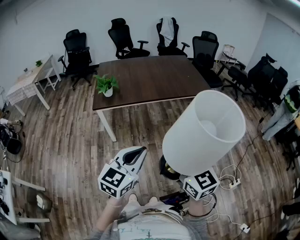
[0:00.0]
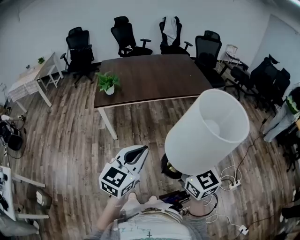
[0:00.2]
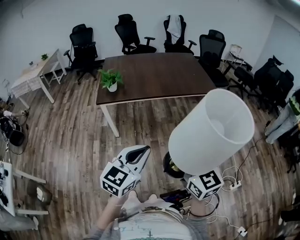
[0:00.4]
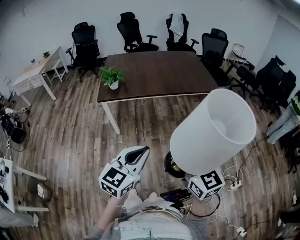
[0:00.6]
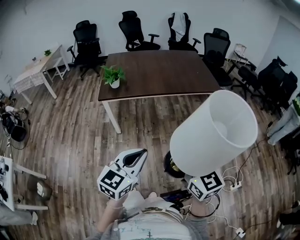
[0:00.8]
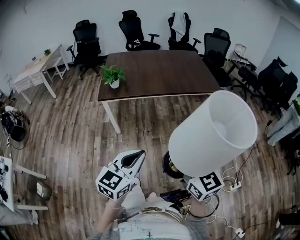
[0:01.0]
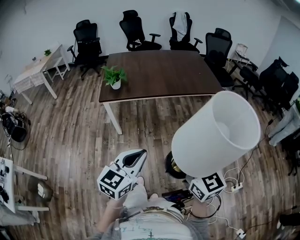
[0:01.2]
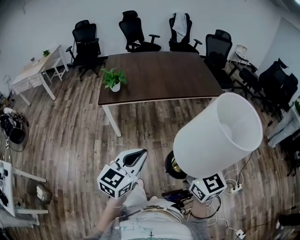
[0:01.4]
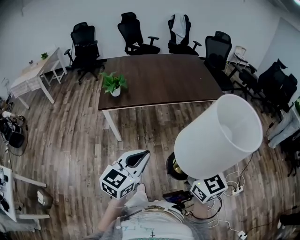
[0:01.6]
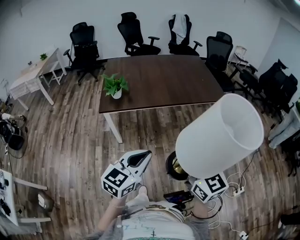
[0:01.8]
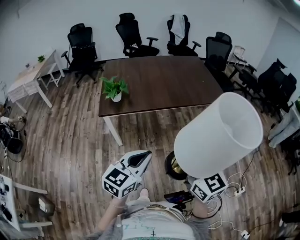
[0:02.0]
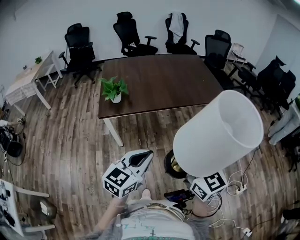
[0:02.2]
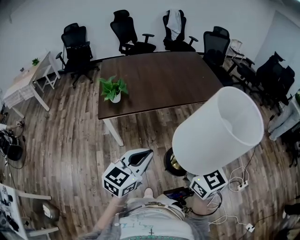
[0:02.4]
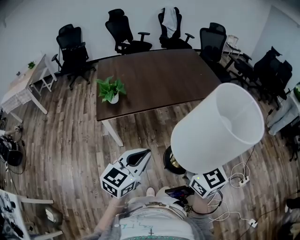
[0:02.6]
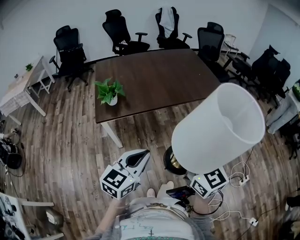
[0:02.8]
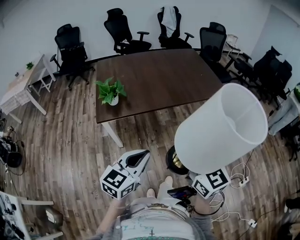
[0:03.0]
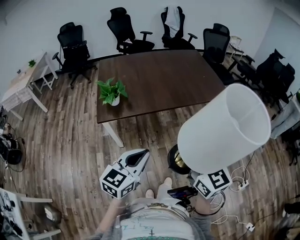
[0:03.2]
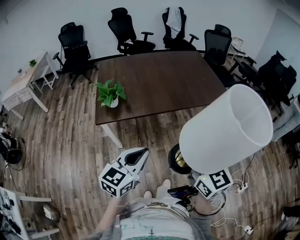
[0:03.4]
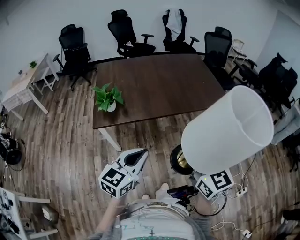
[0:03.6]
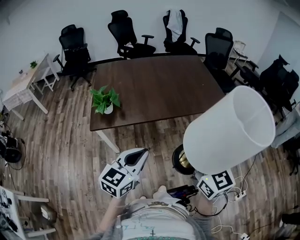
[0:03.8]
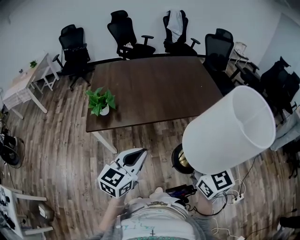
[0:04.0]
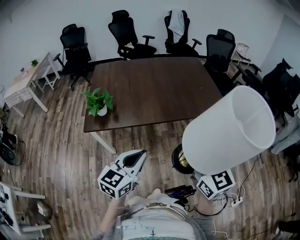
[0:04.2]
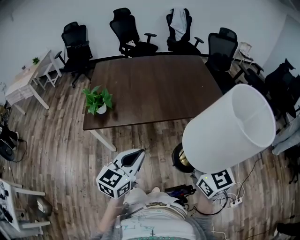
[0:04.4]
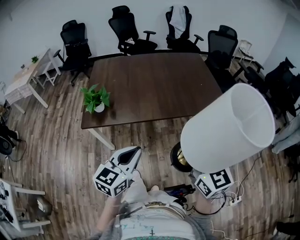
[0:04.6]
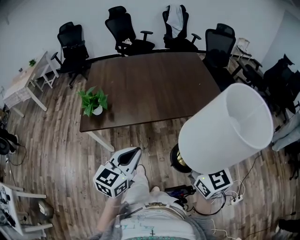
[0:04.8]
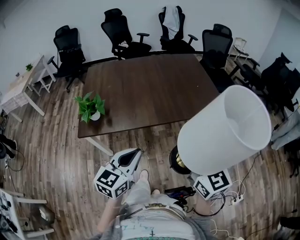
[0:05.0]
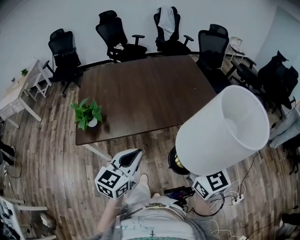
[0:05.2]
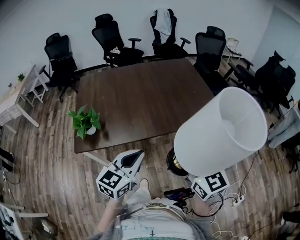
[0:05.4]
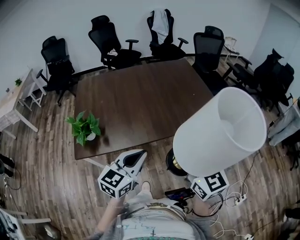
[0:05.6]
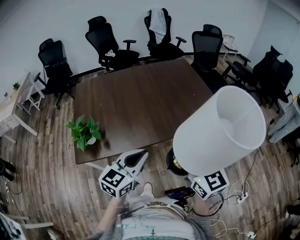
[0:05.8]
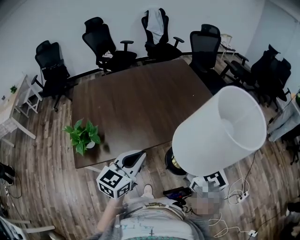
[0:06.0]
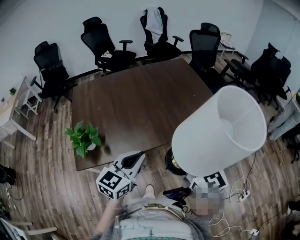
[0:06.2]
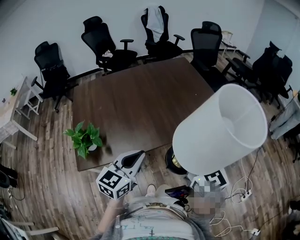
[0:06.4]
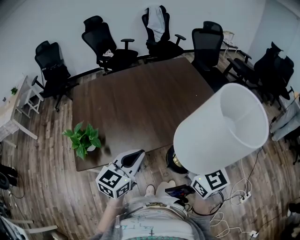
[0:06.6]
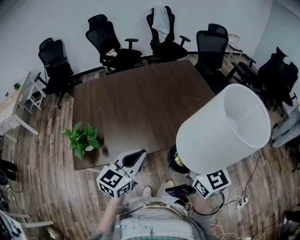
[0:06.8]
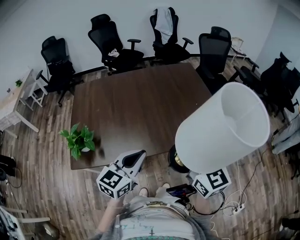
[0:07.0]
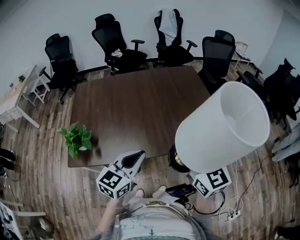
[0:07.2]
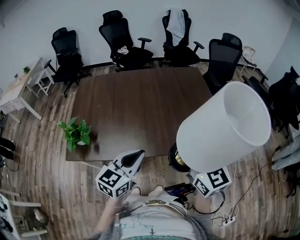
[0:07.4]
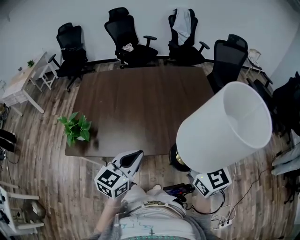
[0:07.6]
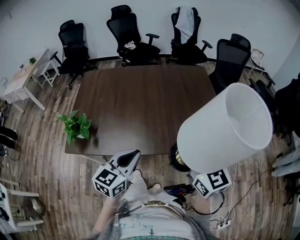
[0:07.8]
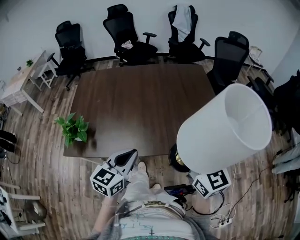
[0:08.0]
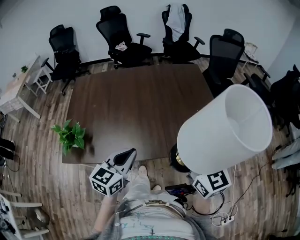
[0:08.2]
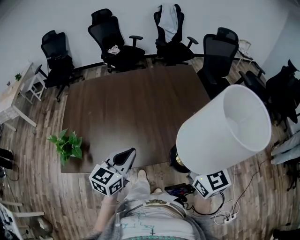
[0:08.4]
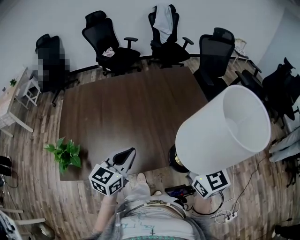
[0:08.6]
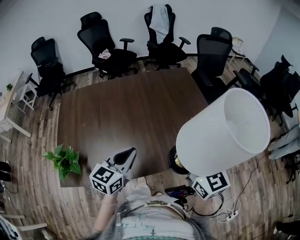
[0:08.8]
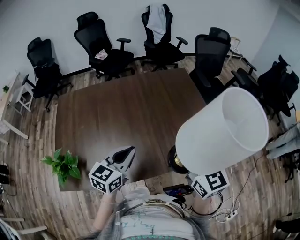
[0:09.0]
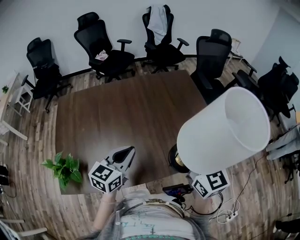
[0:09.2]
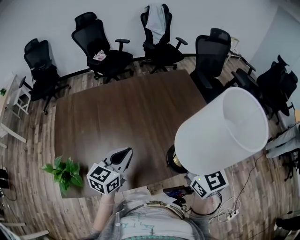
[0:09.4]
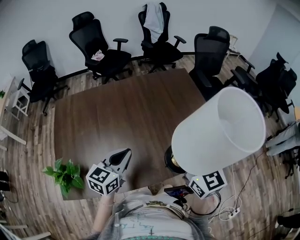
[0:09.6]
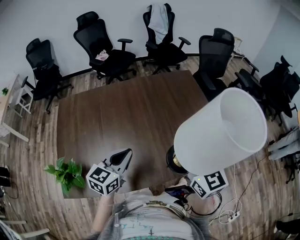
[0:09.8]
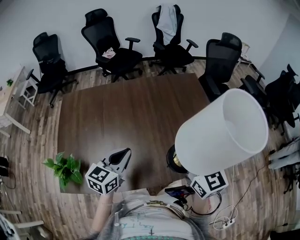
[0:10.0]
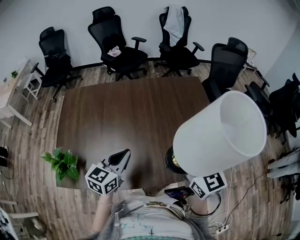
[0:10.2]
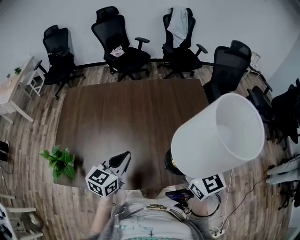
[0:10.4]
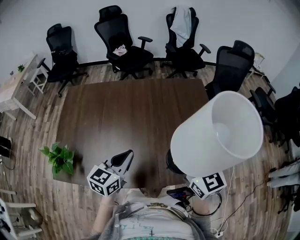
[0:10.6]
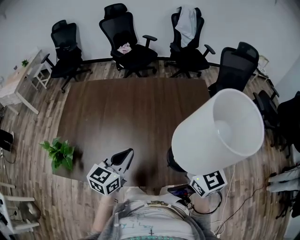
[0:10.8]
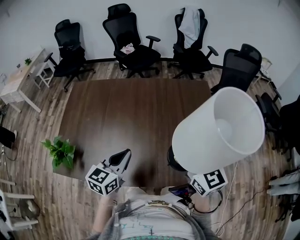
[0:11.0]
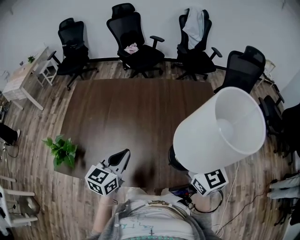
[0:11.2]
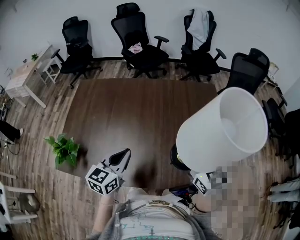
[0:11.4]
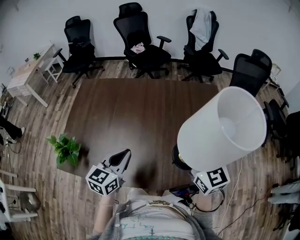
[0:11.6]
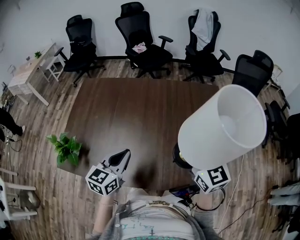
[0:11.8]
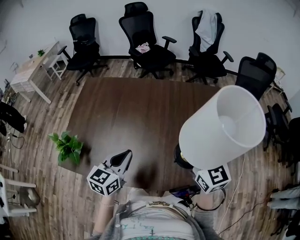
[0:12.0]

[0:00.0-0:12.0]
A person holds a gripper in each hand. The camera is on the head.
0:00.0 to 0:01.6: Both grippers move forward, some 5 cm.
0:01.6 to 0:03.0: Both grippers move forward and to the left, roughly 15 cm.
0:03.0 to 0:04.4: Both grippers travel together forward and to the right, about 20 cm.
0:04.4 to 0:06.0: Both grippers move forward, roughly 15 cm.
0:06.0 to 0:07.6: The two grippers go about 15 cm forward and to the right.
0:07.6 to 0:09.0: The two grippers go about 15 cm forward.
0:09.0 to 0:10.4: The right gripper shifts approximately 10 cm forward.
0:10.4 to 0:12.0: The right gripper shifts roughly 5 cm forward.

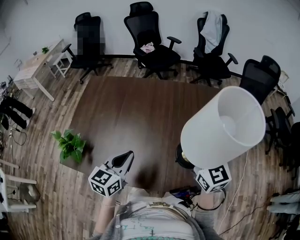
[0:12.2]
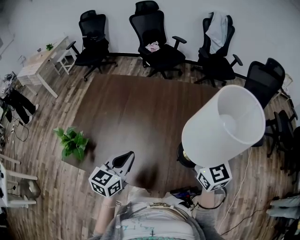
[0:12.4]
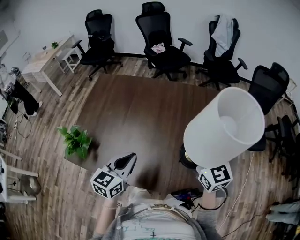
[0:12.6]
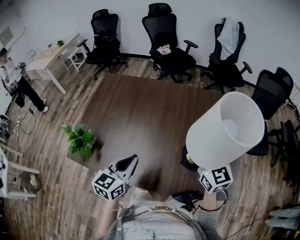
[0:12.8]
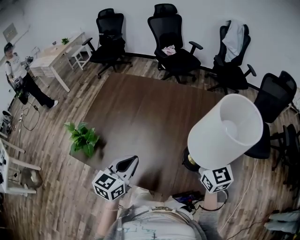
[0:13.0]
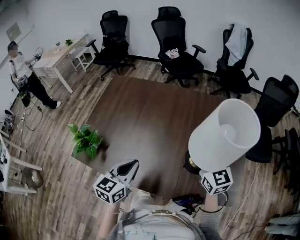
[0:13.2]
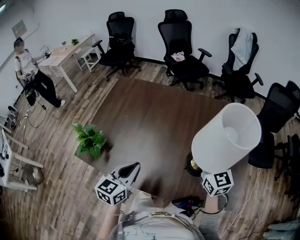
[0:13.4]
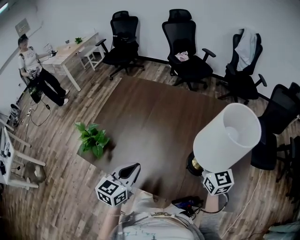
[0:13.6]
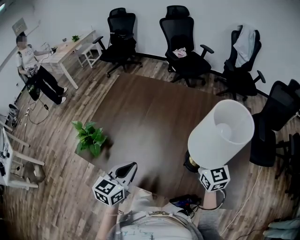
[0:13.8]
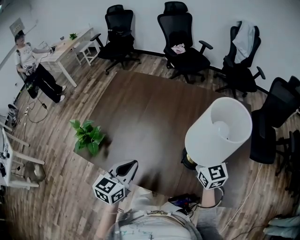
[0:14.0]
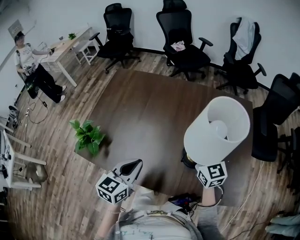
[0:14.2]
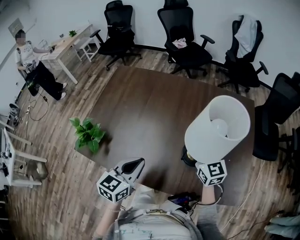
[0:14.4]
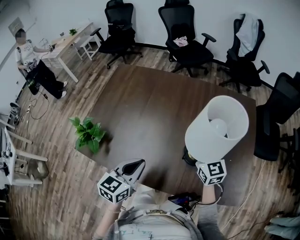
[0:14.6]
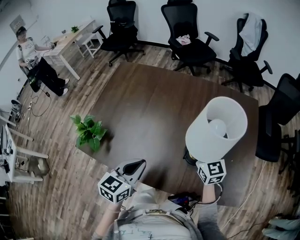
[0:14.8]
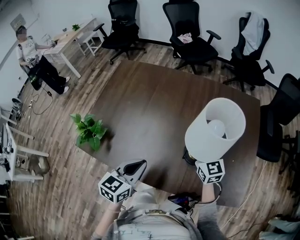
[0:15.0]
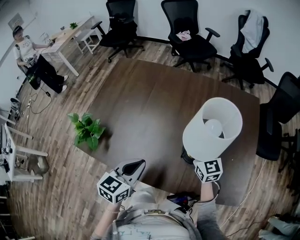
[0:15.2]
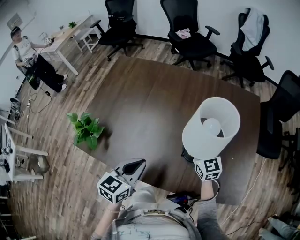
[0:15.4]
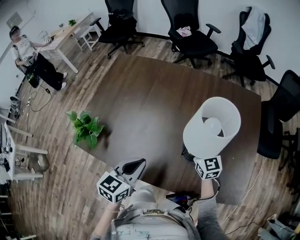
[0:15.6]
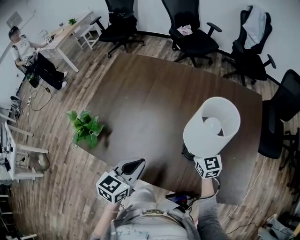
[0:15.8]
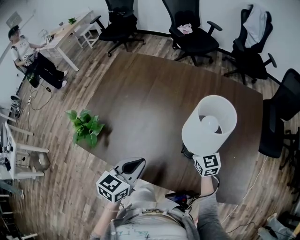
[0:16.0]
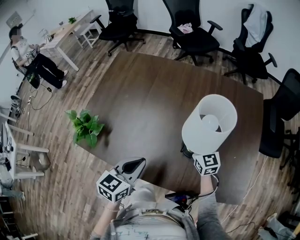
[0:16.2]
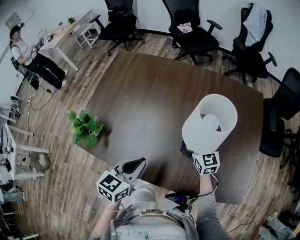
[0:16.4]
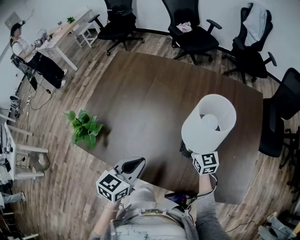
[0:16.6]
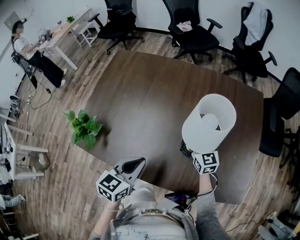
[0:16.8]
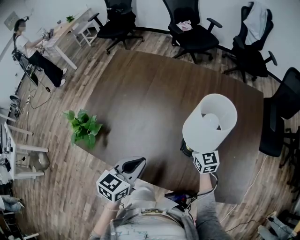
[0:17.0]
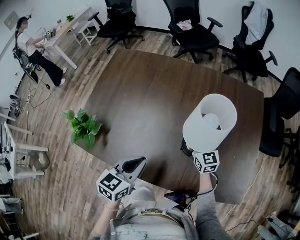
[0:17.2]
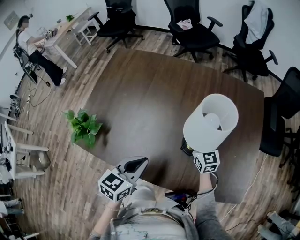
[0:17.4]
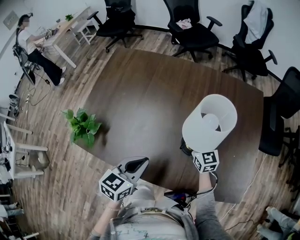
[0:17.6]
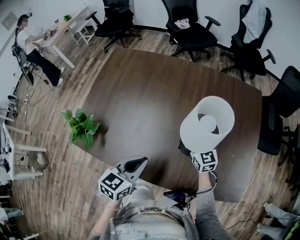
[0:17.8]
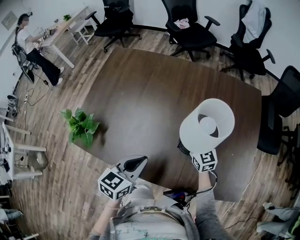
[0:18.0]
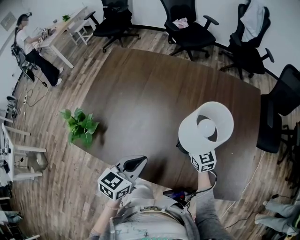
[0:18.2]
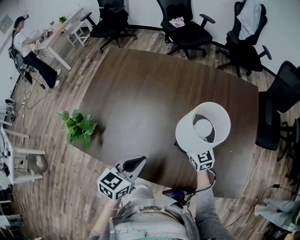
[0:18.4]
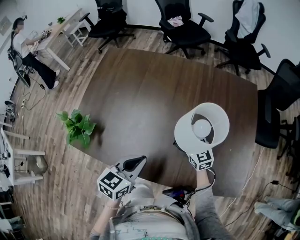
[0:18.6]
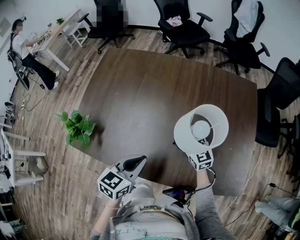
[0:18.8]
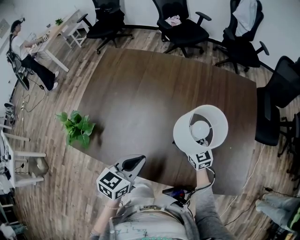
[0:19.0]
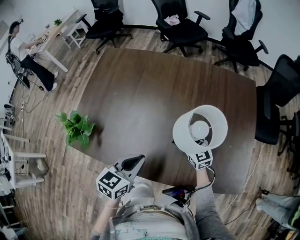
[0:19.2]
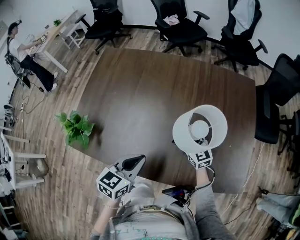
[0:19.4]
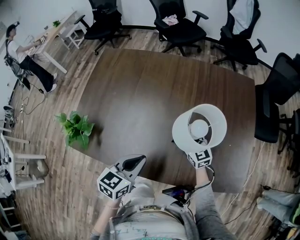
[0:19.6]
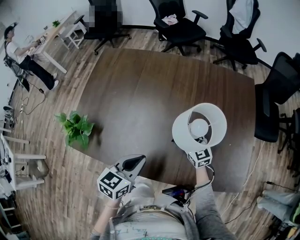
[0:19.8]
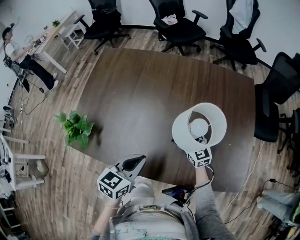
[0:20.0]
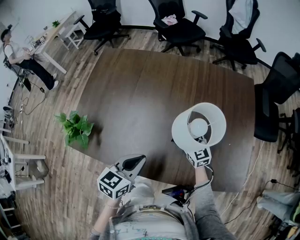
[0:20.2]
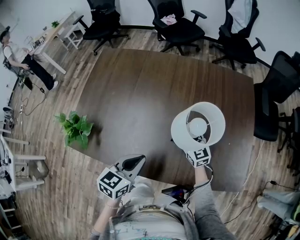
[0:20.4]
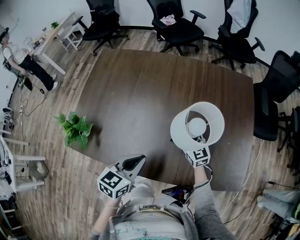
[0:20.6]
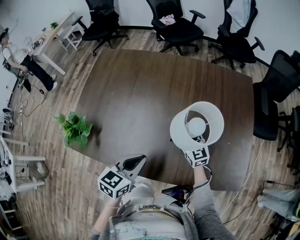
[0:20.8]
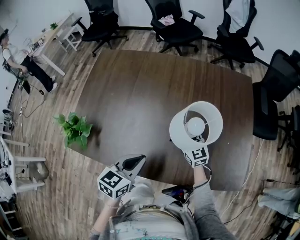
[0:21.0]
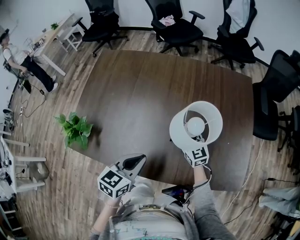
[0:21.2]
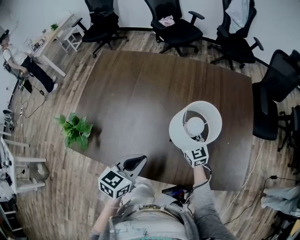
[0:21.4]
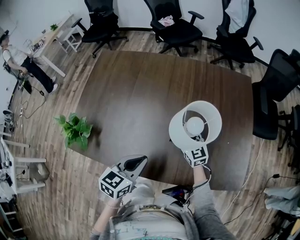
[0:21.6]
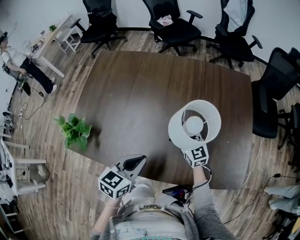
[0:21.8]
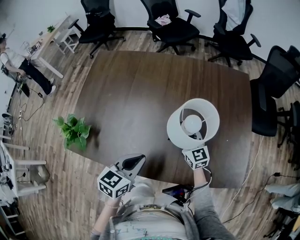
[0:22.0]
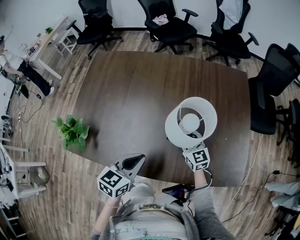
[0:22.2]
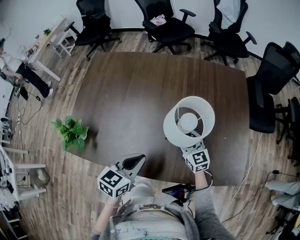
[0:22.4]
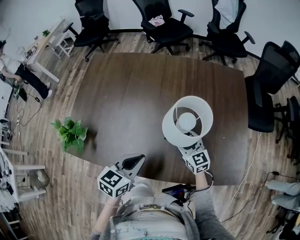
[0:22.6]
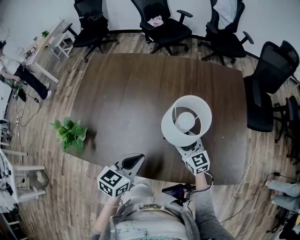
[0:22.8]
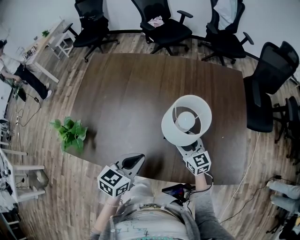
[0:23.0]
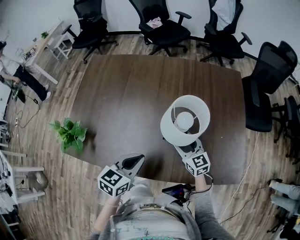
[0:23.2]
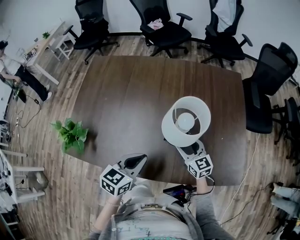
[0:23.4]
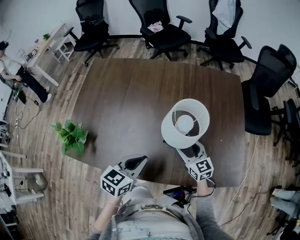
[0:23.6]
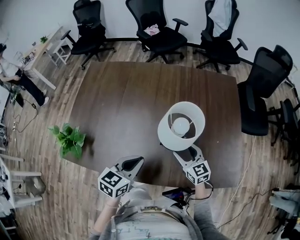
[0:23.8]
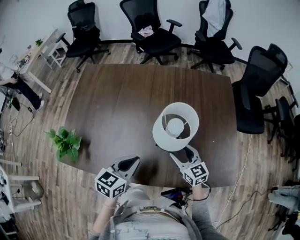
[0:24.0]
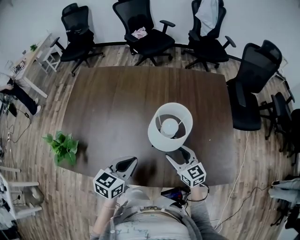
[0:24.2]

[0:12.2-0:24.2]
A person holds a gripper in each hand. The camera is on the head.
0:12.2 to 0:13.8: The left gripper travels to the left by some 10 cm; the right gripper shifts some 10 cm downward, to the left and forward.
0:13.8 to 0:15.2: The right gripper is displaced downward by some 10 cm.
0:15.2 to 0:16.6: The right gripper is displaced downward by approximately 5 cm.
0:16.6 to 0:18.2: The grippers stay close to where they were, moving slightly.
0:18.2 to 0:19.8: Neither gripper changes place.
0:19.8 to 0:21.2: Both grippers stay about where they are.
0:21.2 to 0:22.6: The right gripper shifts about 5 cm backward, and opens up.
0:22.6 to 0:24.2: The right gripper is displaced backward by approximately 5 cm.
